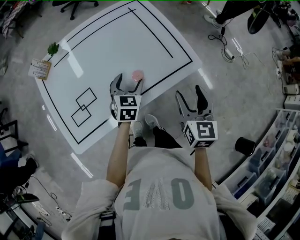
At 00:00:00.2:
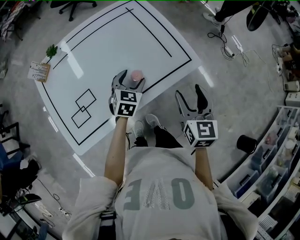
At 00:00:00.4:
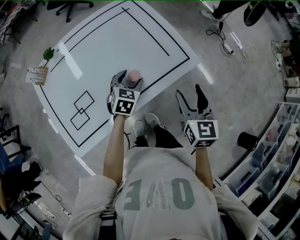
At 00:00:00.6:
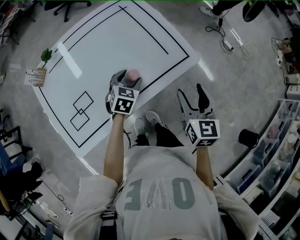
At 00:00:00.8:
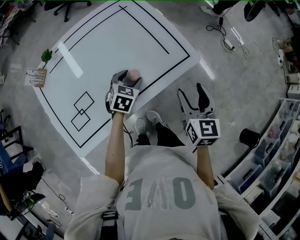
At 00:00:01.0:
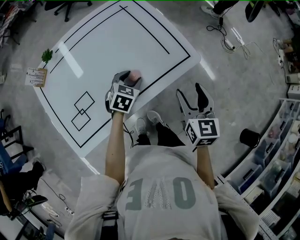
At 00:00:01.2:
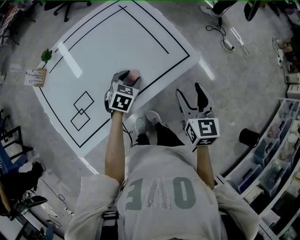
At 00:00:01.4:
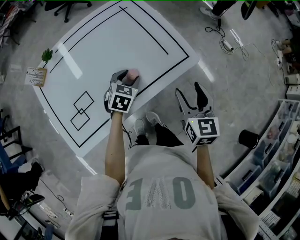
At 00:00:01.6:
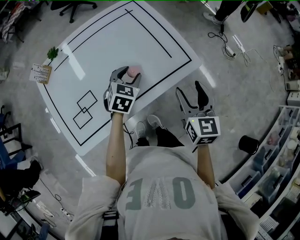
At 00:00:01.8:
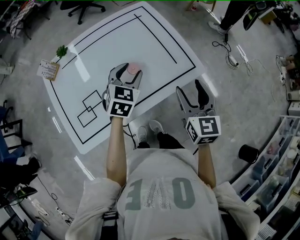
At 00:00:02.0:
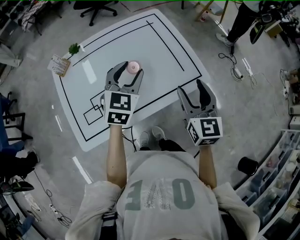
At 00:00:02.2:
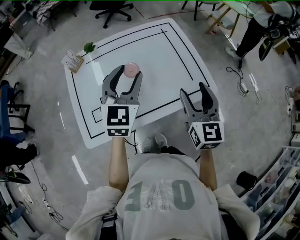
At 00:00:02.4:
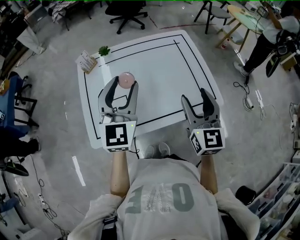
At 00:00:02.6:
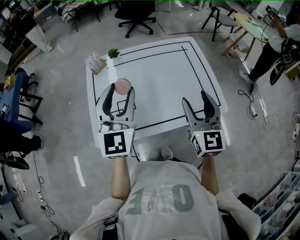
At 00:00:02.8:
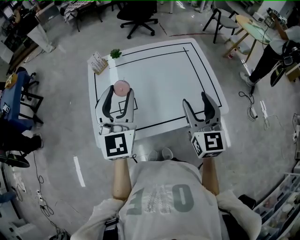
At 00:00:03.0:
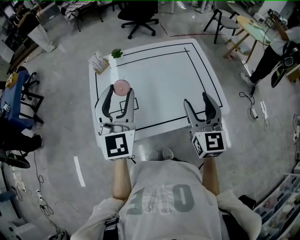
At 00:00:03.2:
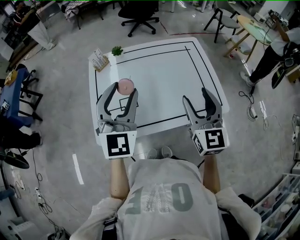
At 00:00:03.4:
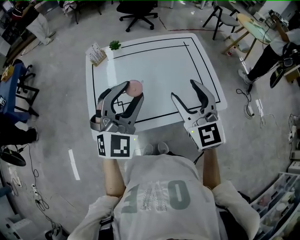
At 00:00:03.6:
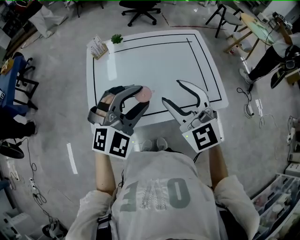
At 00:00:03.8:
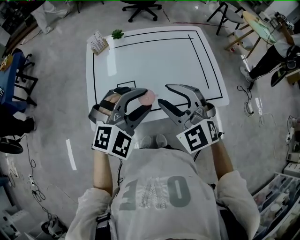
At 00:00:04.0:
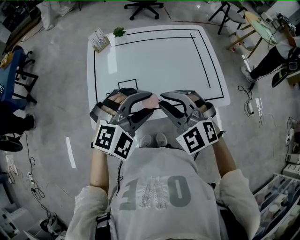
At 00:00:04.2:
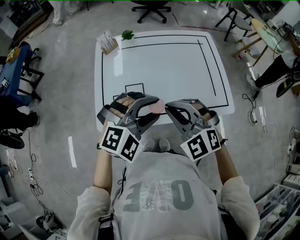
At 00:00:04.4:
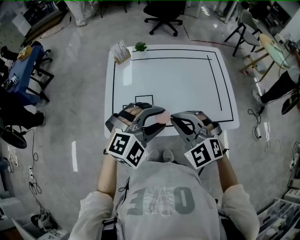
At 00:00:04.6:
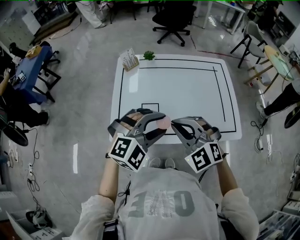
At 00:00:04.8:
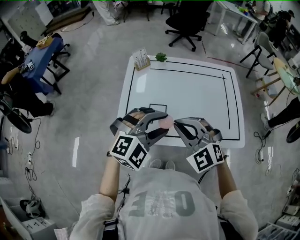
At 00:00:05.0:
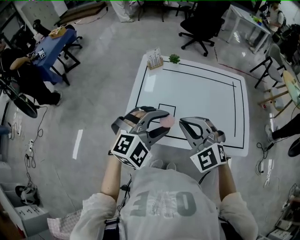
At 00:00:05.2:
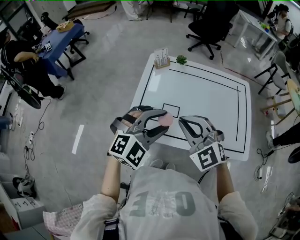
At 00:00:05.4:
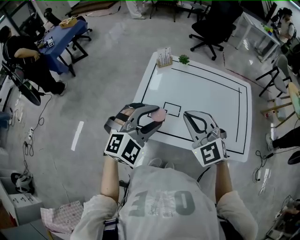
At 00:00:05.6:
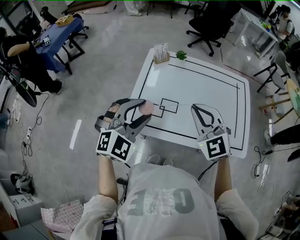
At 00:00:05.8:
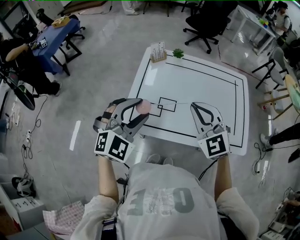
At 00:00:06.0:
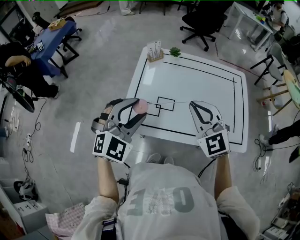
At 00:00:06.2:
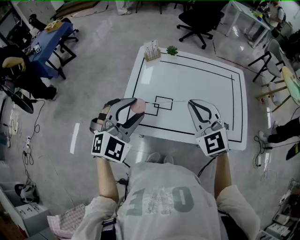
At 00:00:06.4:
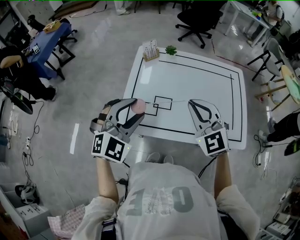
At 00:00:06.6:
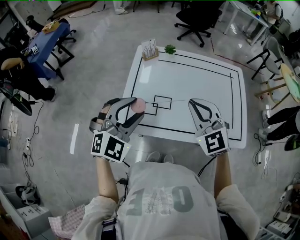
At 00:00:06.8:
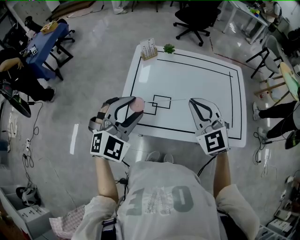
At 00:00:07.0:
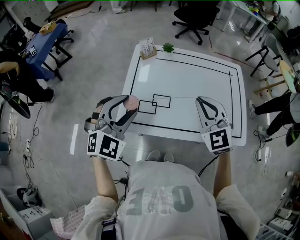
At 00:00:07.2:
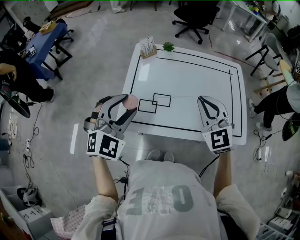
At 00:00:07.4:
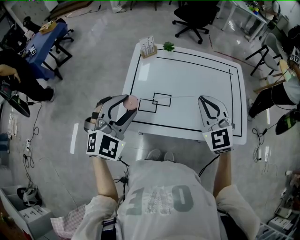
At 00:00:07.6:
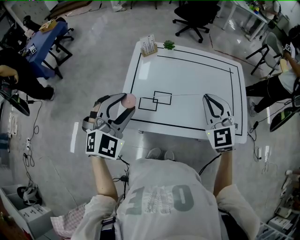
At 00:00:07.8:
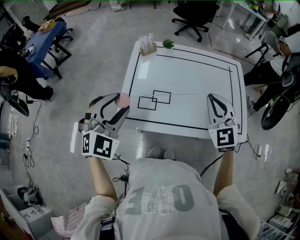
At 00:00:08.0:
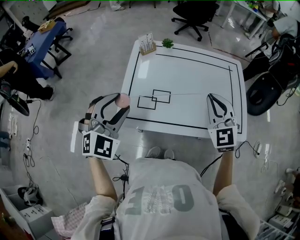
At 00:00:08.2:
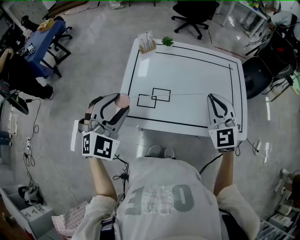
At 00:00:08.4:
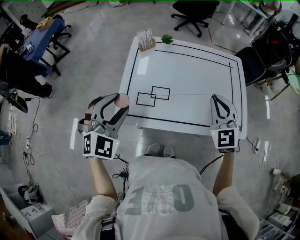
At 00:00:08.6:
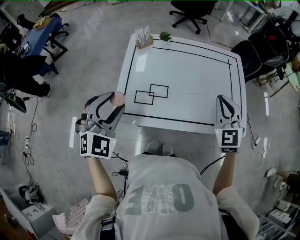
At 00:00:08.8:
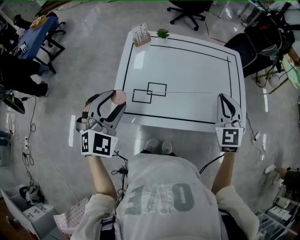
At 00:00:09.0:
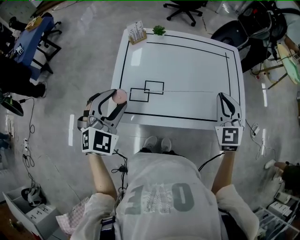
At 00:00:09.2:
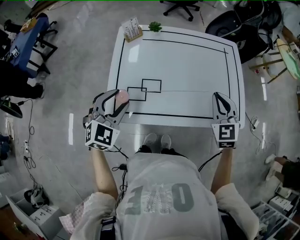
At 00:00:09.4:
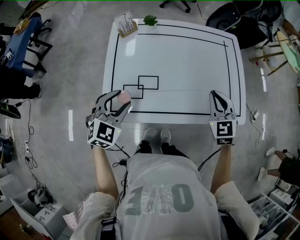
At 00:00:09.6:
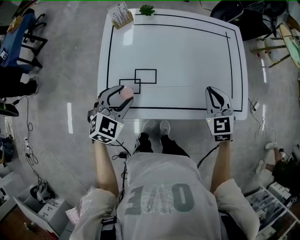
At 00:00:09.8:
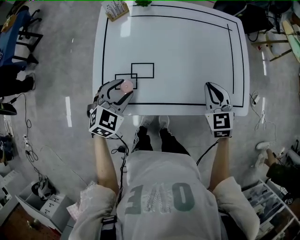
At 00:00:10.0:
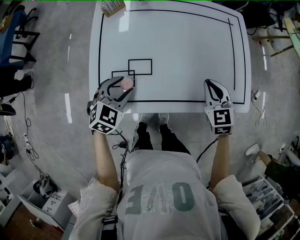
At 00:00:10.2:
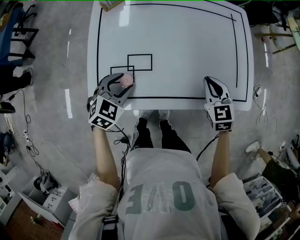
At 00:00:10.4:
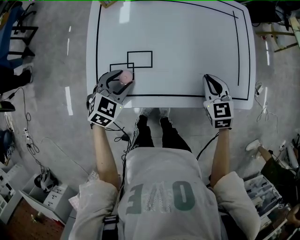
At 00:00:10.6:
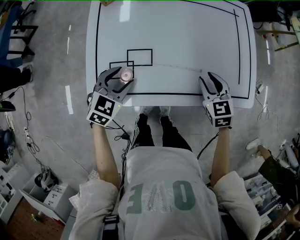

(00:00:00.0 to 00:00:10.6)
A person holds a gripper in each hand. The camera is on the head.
00:00:01.6 - 00:00:03.0: The right gripper changes place by approximately 20 cm, and swivels approximately 30 degrees; the left gripper heads upward, covering approximately 30 cm, and points its fingers some 50 degrees further upward.
00:00:03.0 - 00:00:04.6: The left gripper travels downward and backward by some 10 cm, and angles its fingers downward, by some 40 degrees. The right gripper travels to the left by roughly 15 cm, swivels about 70 degrees, and closes.
00:00:04.6 - 00:00:06.0: The left gripper is displaced to the left by some 15 cm, and rotates approximately 30 degrees; the right gripper goes roughly 5 cm forward.
00:00:06.0 - 00:00:07.6: The right gripper travels to the right by roughly 5 cm.
00:00:07.6 - 00:00:09.0: The right gripper heads to the right, covering roughly 10 cm.
00:00:09.0 - 00:00:10.6: The grippers both shift downward by some 20 cm. The left gripper changes its angle by approximately 30 degrees, while the right gripper changes its angle by some 30 degrees.

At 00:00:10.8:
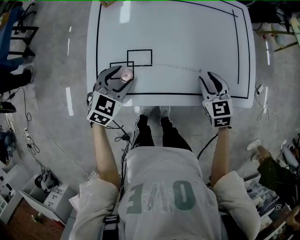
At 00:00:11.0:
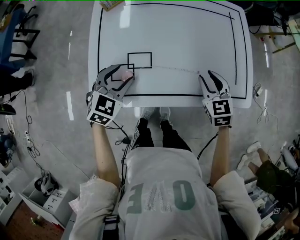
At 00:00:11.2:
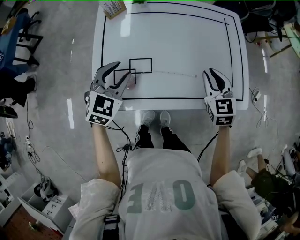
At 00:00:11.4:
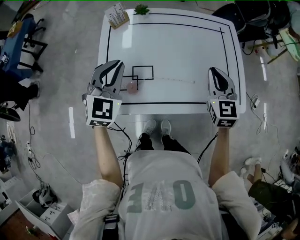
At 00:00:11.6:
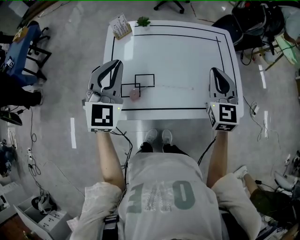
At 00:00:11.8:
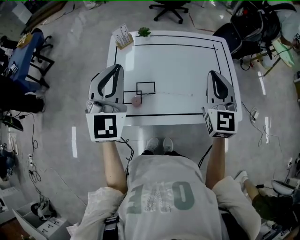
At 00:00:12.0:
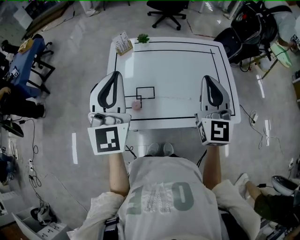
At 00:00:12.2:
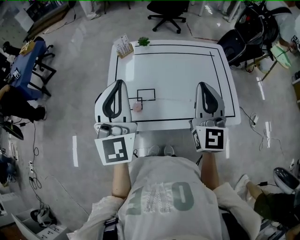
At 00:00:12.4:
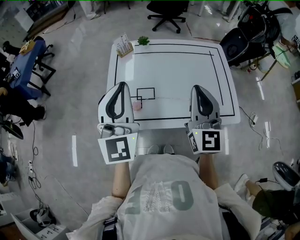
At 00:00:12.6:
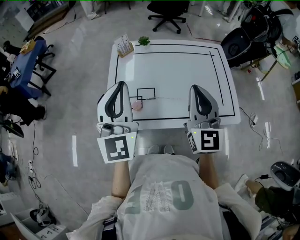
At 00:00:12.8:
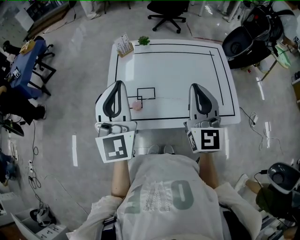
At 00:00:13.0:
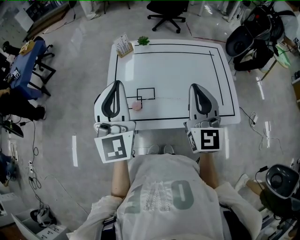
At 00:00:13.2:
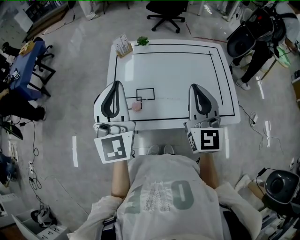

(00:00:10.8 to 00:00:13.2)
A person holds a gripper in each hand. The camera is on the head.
00:00:10.8 - 00:00:12.0: Both grippers travel together upward, approximately 30 cm. The right gripper angles its fingers upward, by some 50 degrees. The left gripper tips its fingers upward by roughly 50 degrees, and closes.
00:00:12.0 - 00:00:13.2: The grippers make only small movements.

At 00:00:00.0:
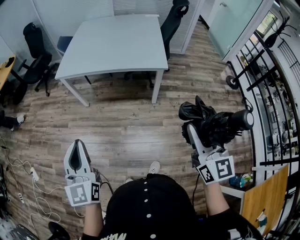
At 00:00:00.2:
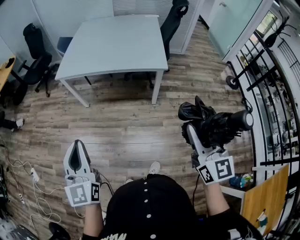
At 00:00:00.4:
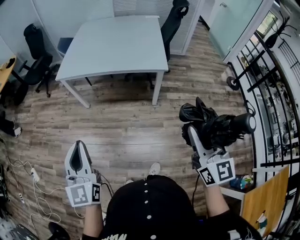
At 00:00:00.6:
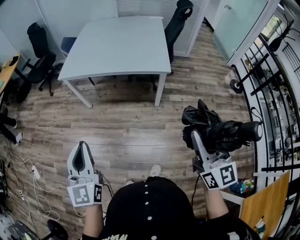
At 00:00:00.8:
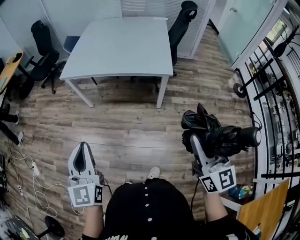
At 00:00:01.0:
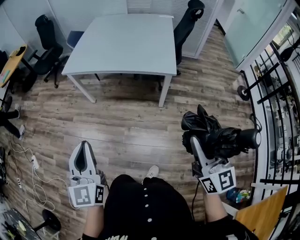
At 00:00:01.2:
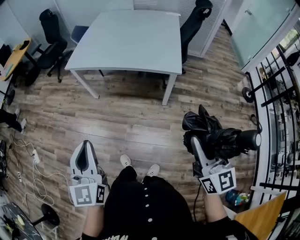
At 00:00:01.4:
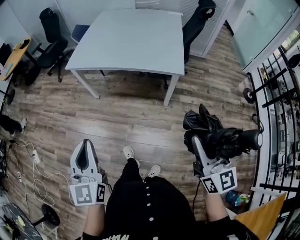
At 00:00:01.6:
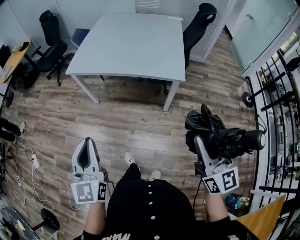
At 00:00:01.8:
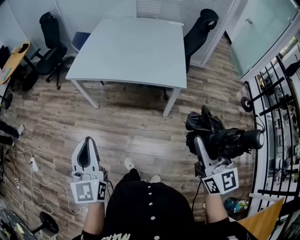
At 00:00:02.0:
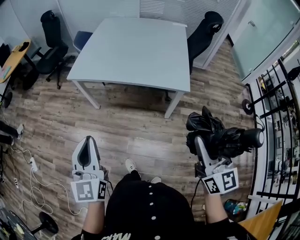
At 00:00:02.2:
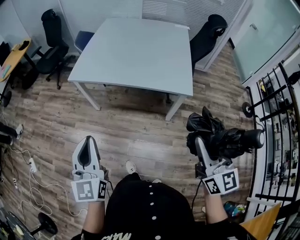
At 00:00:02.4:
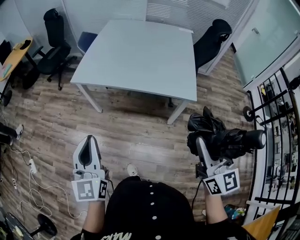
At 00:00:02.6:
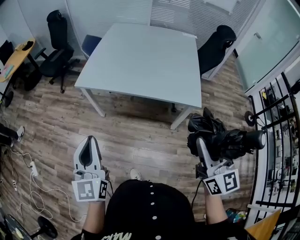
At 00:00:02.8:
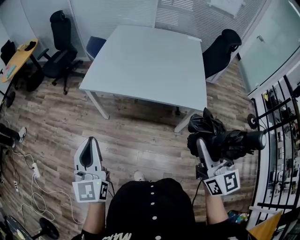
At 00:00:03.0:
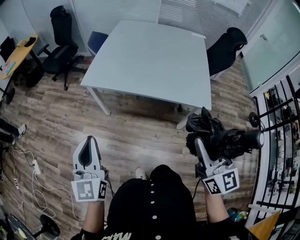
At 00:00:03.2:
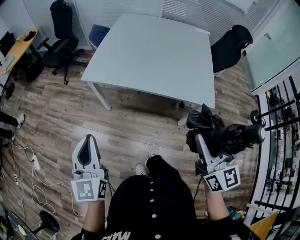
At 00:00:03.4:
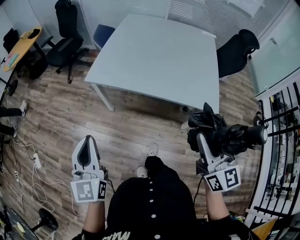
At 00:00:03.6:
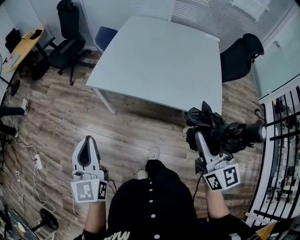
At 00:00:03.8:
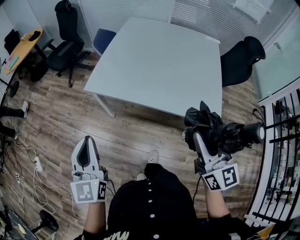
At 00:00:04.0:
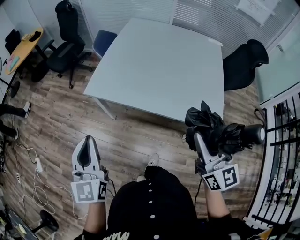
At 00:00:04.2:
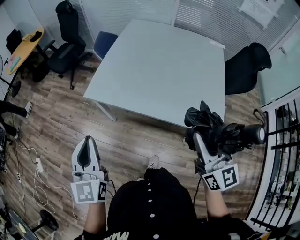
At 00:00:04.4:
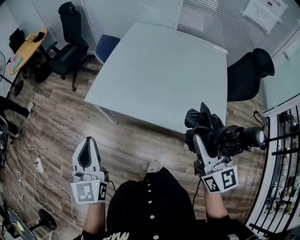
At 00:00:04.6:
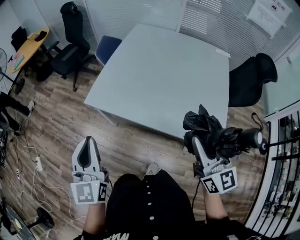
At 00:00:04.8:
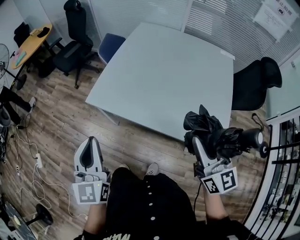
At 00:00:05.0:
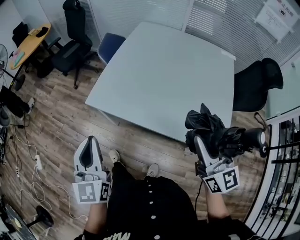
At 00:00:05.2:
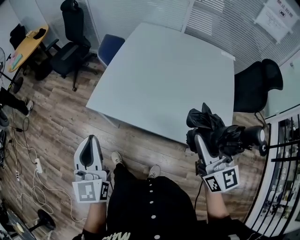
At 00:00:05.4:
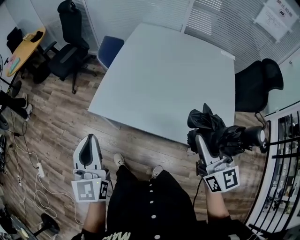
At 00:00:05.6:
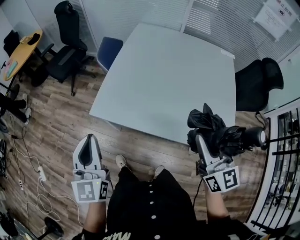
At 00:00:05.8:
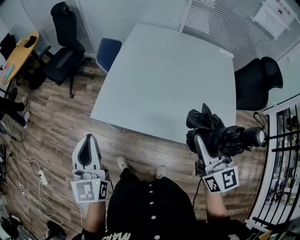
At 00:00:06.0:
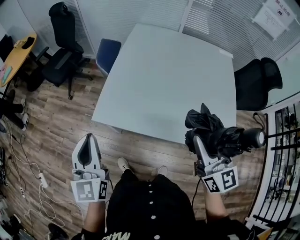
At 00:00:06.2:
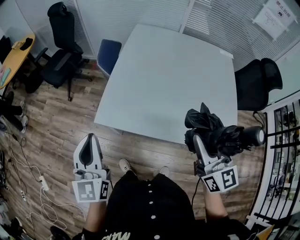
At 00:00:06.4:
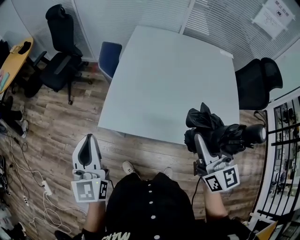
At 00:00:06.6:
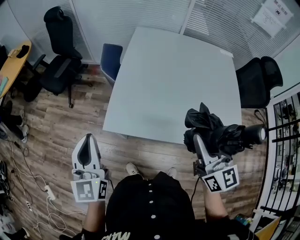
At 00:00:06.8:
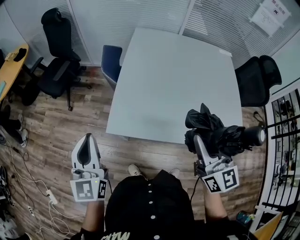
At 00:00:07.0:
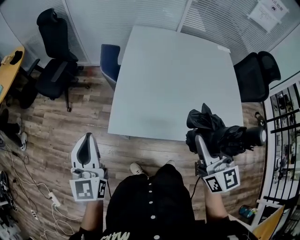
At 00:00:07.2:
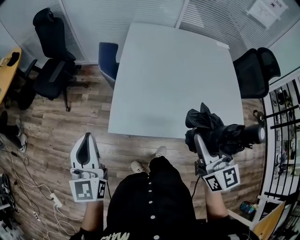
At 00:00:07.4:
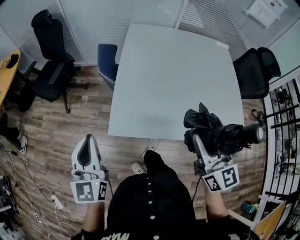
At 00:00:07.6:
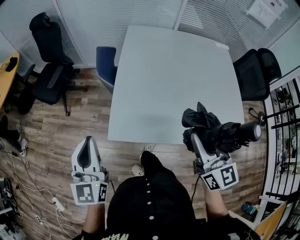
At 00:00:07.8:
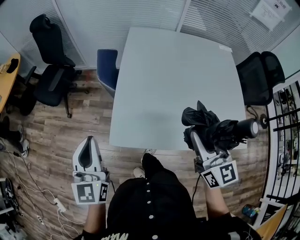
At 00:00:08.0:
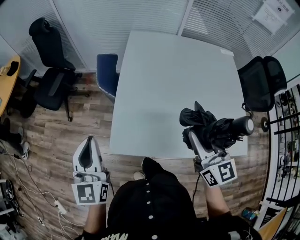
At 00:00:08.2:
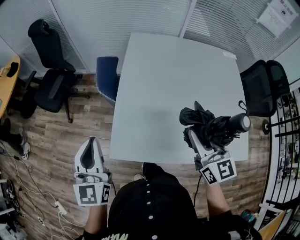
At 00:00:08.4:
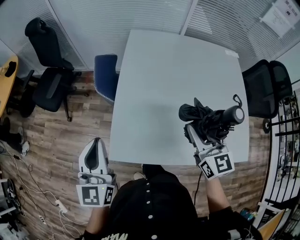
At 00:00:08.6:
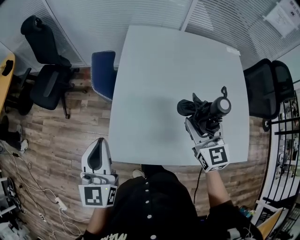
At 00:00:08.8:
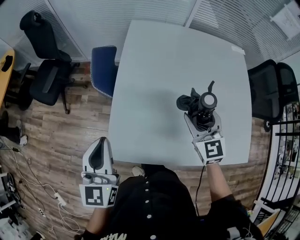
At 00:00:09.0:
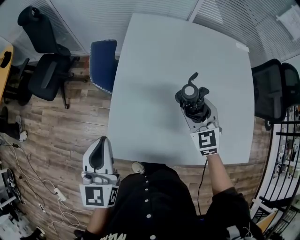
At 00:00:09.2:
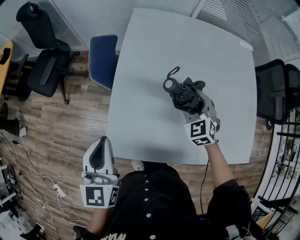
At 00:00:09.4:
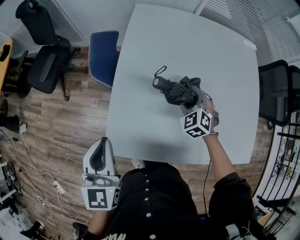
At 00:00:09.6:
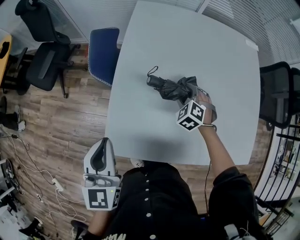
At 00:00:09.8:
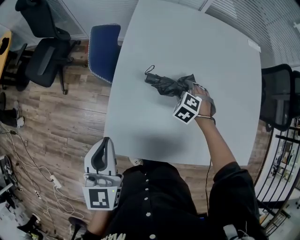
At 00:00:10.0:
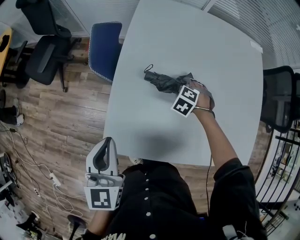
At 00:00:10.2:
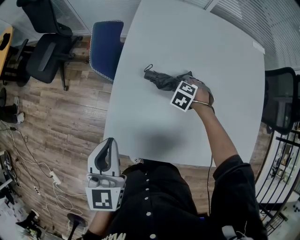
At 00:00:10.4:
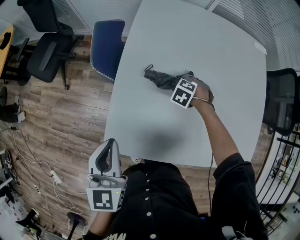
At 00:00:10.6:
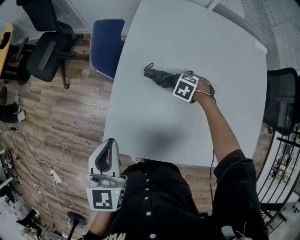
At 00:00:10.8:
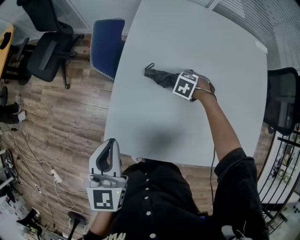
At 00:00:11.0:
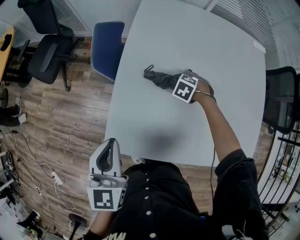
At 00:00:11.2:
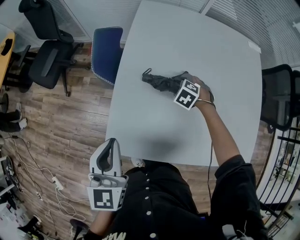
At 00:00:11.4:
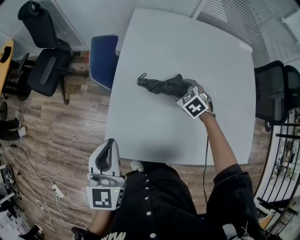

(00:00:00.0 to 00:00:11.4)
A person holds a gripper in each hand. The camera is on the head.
00:00:00.0 - 00:00:01.4: The left gripper shifts by roughly 5 cm. Meanwhile the right gripper moves forward, approximately 5 cm.
00:00:01.4 - 00:00:02.8: Both grippers move forward and to the left, approximately 20 cm.
00:00:02.8 - 00:00:04.2: Both grippers move forward, approximately 20 cm.
00:00:04.2 - 00:00:05.6: The two grippers go some 15 cm forward.
00:00:05.6 - 00:00:07.2: The left gripper shifts approximately 20 cm to the left and forward. The right gripper moves to the left, roughly 15 cm.
00:00:07.2 - 00:00:08.6: The left gripper moves forward and to the right, some 15 cm; the right gripper goes roughly 25 cm forward and downward, and turns by some 20 degrees.
00:00:08.6 - 00:00:10.0: The left gripper travels downward by approximately 5 cm, while the right gripper moves downward, approximately 30 cm, and tilts its fingers approximately 60 degrees downward.
00:00:10.0 - 00:00:11.4: The right gripper heads upward, covering some 5 cm, and changes its angle by roughly 30 degrees.
